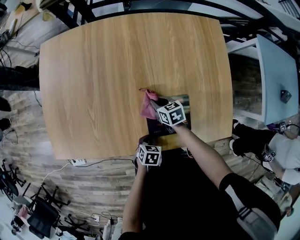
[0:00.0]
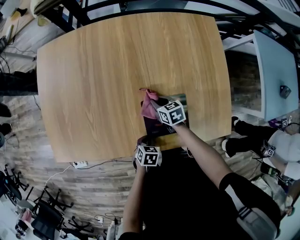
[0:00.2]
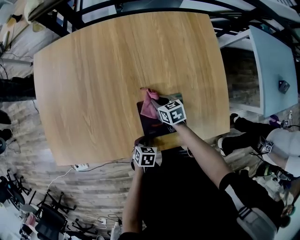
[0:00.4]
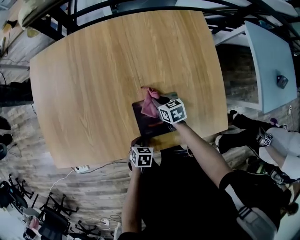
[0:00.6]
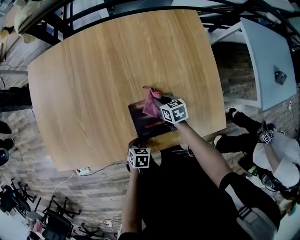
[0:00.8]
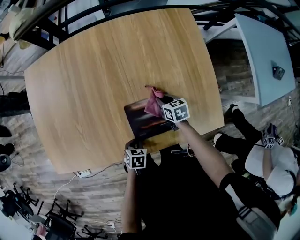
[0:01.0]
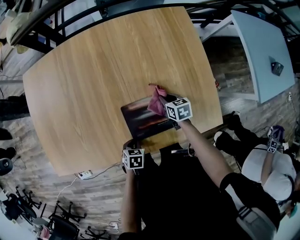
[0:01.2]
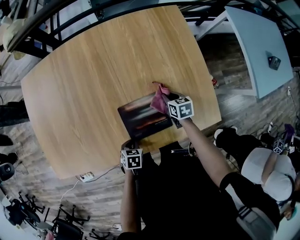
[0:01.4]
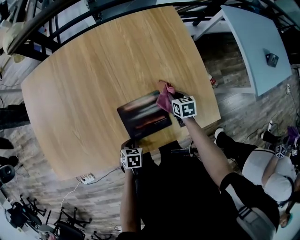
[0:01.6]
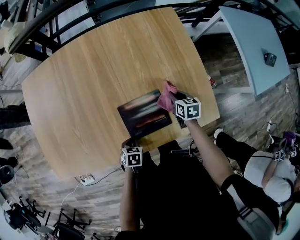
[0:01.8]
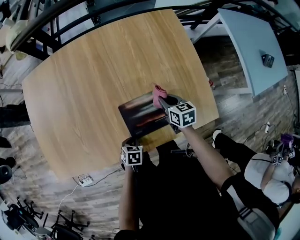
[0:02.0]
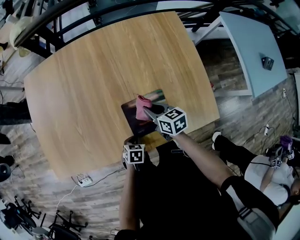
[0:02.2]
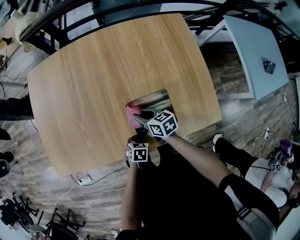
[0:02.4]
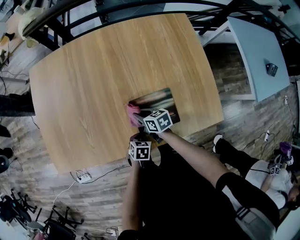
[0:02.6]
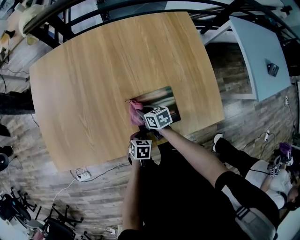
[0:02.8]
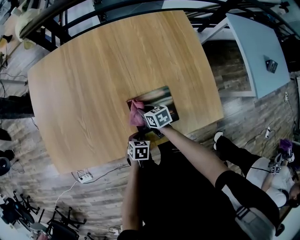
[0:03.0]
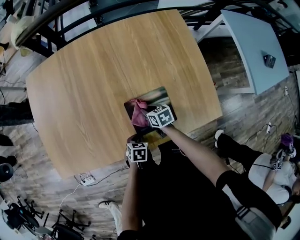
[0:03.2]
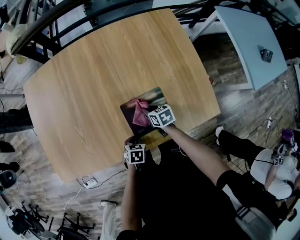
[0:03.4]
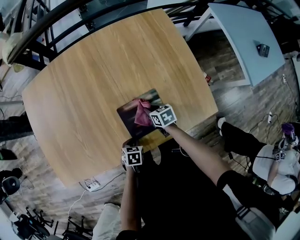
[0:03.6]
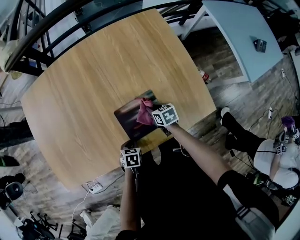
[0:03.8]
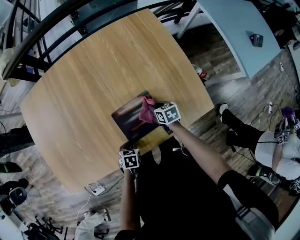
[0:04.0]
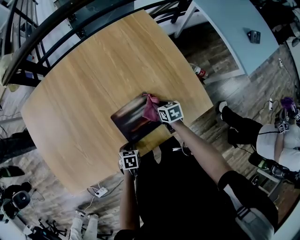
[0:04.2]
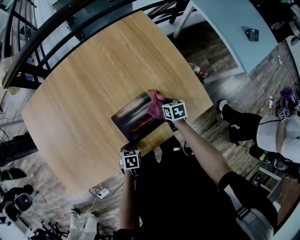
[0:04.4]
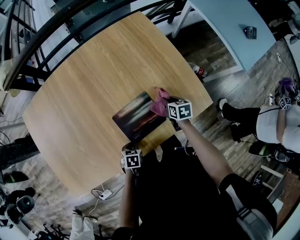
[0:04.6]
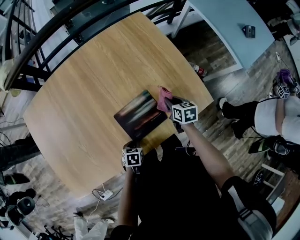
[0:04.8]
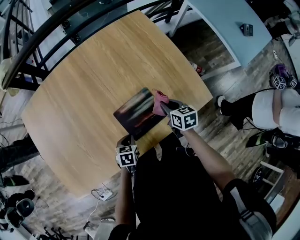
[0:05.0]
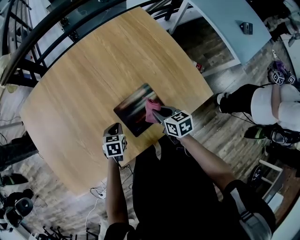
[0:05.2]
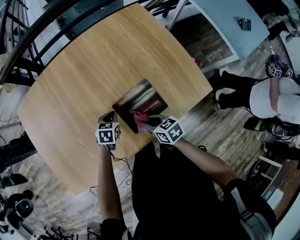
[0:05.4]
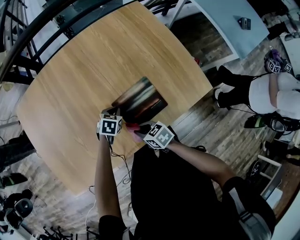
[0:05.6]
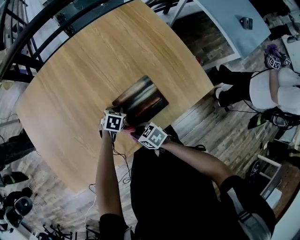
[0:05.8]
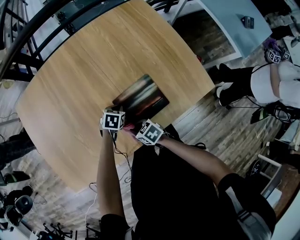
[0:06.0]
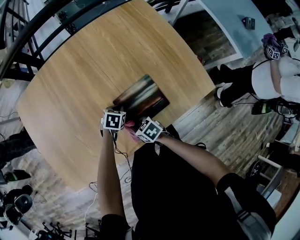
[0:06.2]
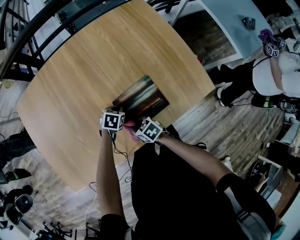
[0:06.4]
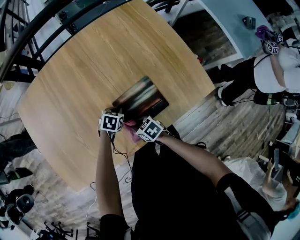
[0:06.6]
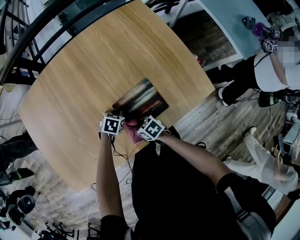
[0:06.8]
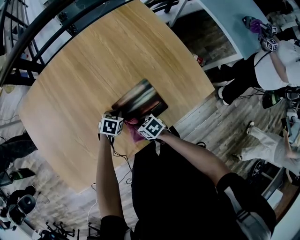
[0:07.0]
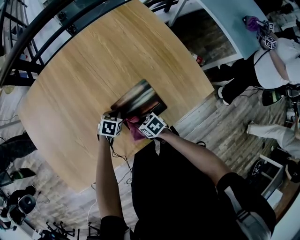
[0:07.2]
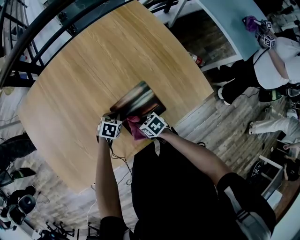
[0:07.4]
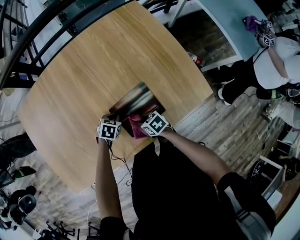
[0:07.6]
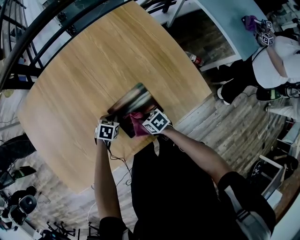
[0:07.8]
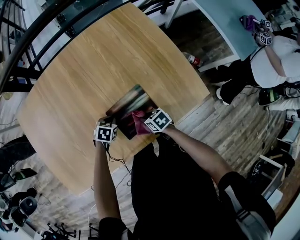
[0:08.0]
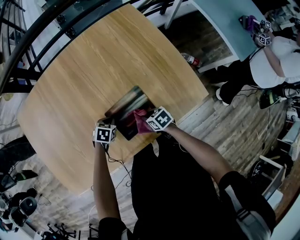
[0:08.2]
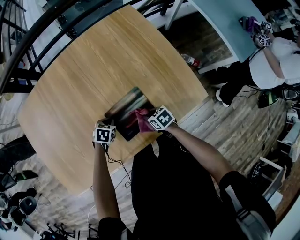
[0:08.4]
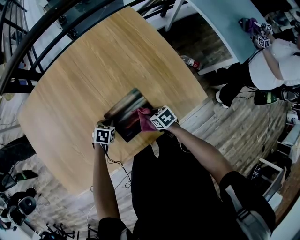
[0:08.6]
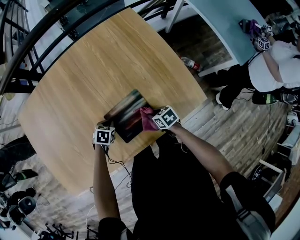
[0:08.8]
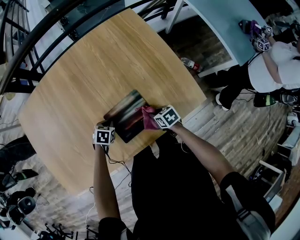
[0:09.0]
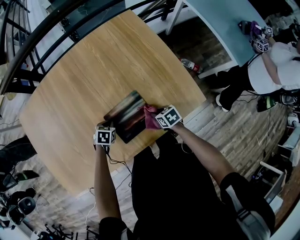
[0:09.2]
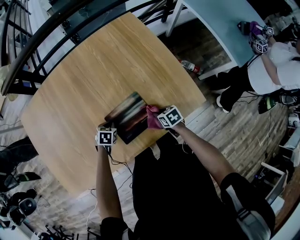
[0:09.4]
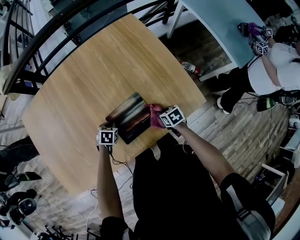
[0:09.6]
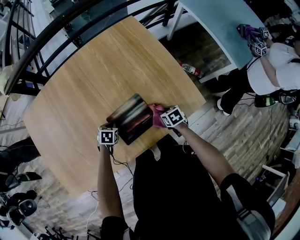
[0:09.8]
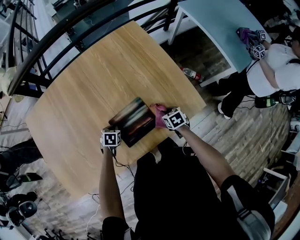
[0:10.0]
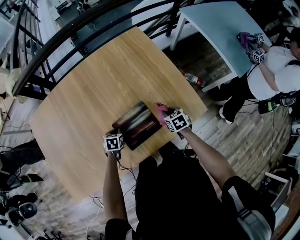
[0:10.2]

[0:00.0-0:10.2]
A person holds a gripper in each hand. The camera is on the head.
0:00.0 to 0:01.4: The right gripper shifts some 20 cm to the right, and changes its angle by roughly 20 degrees.
0:01.4 to 0:03.0: The right gripper travels to the left by roughly 20 cm.
0:03.0 to 0:04.4: The right gripper goes some 20 cm to the right, and rotates approximately 30 degrees.
0:04.4 to 0:05.8: The right gripper shifts by about 30 cm, and rotates approximately 30 degrees, while the left gripper changes place by approximately 15 cm, and turns by some 20 degrees.
0:05.8 to 0:07.2: The right gripper ends up roughly 10 cm from where it was.
0:07.2 to 0:08.8: The right gripper changes place by about 15 cm.
0:08.8 to 0:10.2: The right gripper goes roughly 10 cm to the right and upward, and changes its angle by roughly 20 degrees.

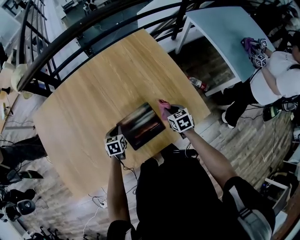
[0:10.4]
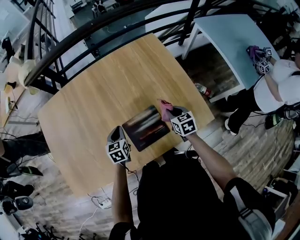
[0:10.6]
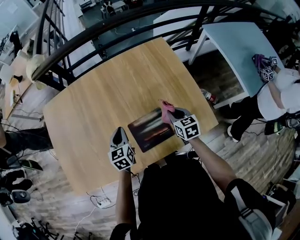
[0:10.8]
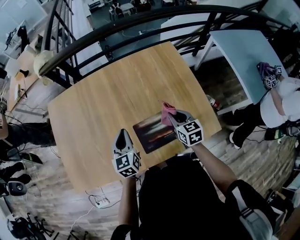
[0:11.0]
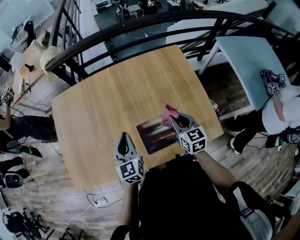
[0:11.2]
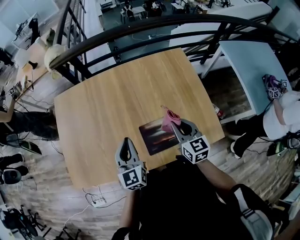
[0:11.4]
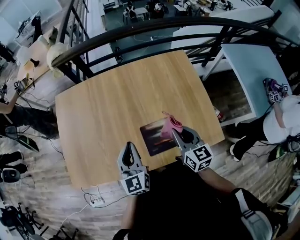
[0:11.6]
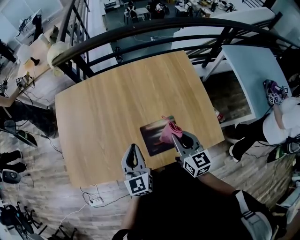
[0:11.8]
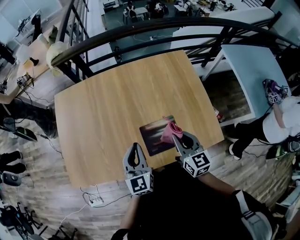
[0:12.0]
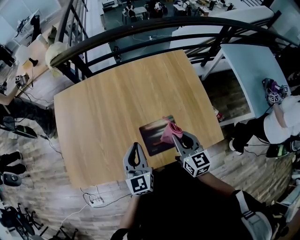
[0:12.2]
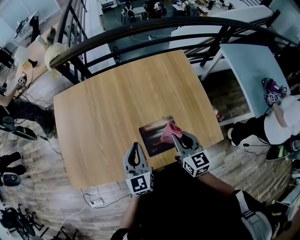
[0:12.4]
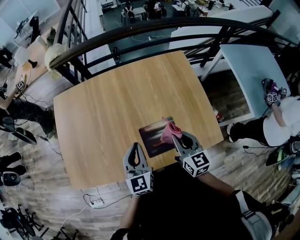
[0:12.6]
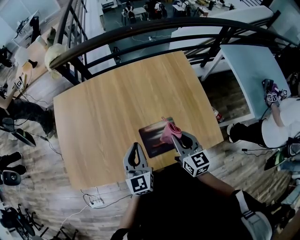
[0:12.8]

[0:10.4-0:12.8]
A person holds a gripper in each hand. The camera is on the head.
0:10.4 to 0:11.6: The right gripper shifts about 25 cm upward and to the left, and points its fingers roughly 30 degrees further upward; the left gripper is displaced upward by about 30 cm, and angles its fingers upward, by approximately 40 degrees.
0:11.6 to 0:12.8: There are only small adjustments of the grippers.

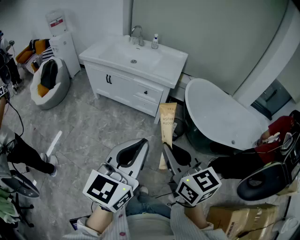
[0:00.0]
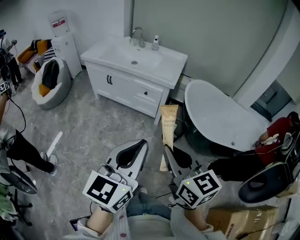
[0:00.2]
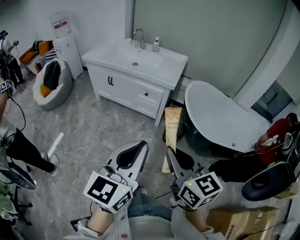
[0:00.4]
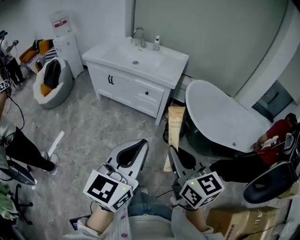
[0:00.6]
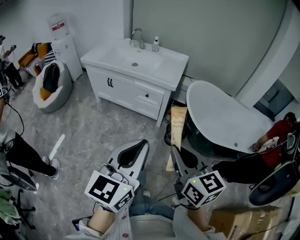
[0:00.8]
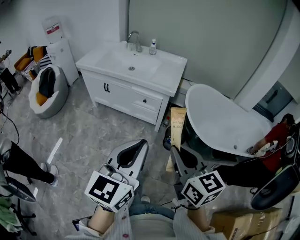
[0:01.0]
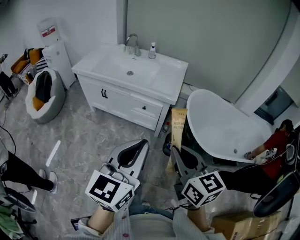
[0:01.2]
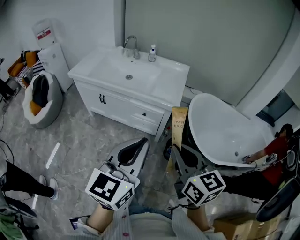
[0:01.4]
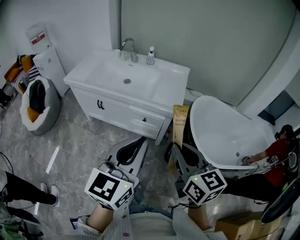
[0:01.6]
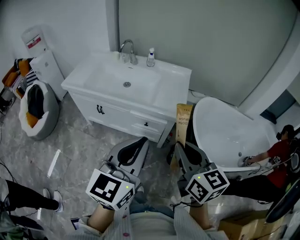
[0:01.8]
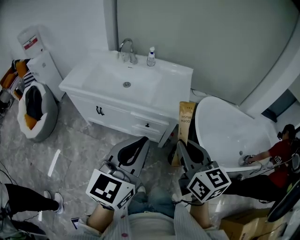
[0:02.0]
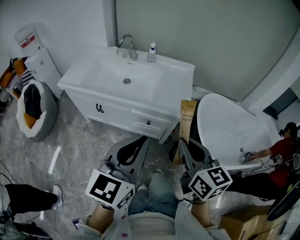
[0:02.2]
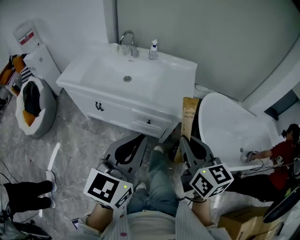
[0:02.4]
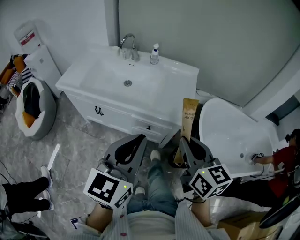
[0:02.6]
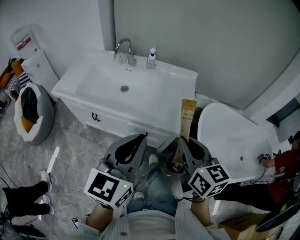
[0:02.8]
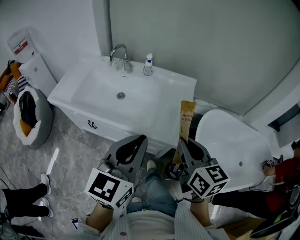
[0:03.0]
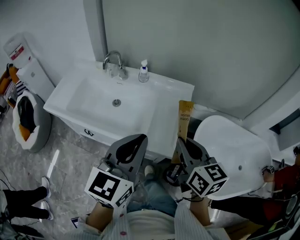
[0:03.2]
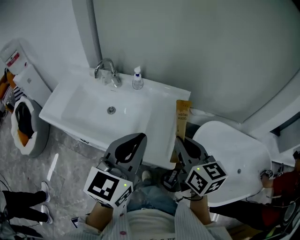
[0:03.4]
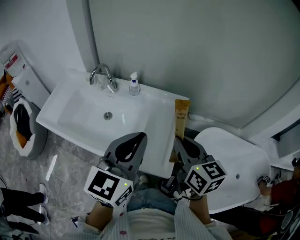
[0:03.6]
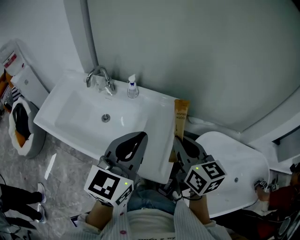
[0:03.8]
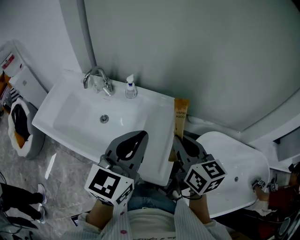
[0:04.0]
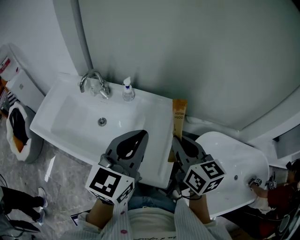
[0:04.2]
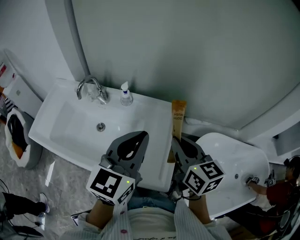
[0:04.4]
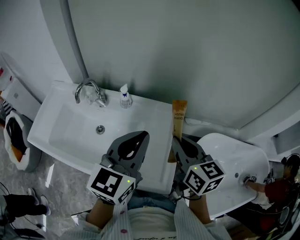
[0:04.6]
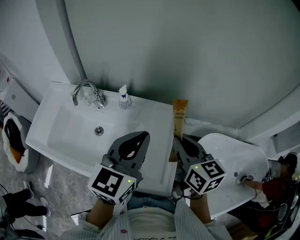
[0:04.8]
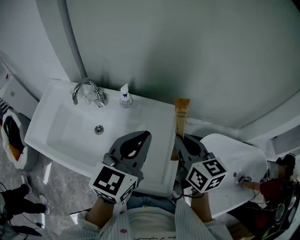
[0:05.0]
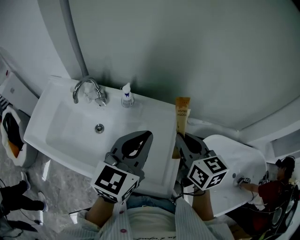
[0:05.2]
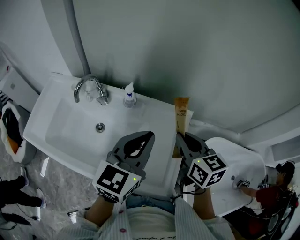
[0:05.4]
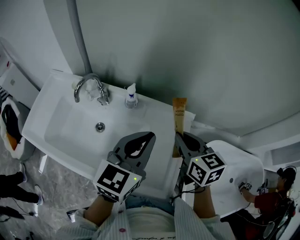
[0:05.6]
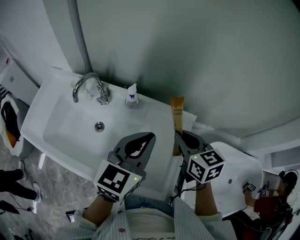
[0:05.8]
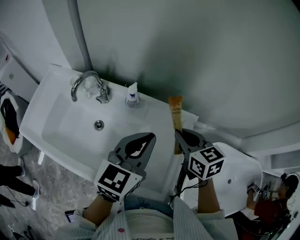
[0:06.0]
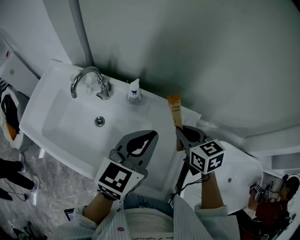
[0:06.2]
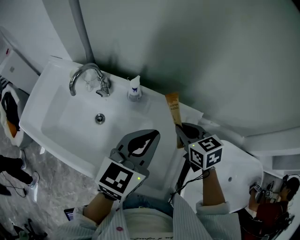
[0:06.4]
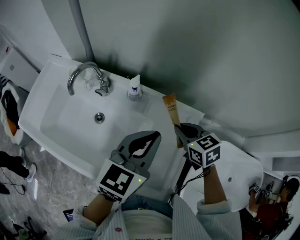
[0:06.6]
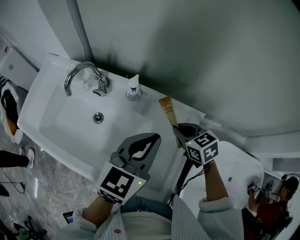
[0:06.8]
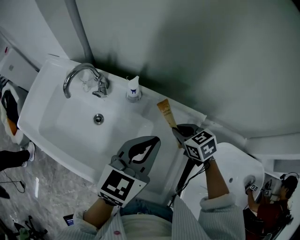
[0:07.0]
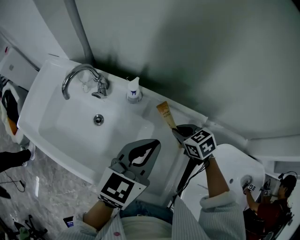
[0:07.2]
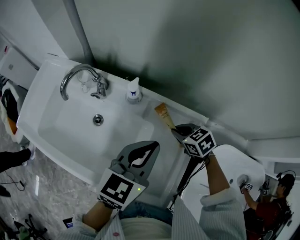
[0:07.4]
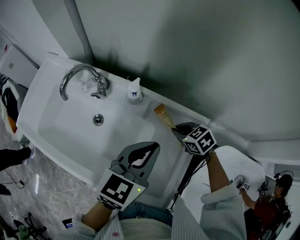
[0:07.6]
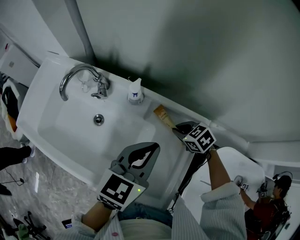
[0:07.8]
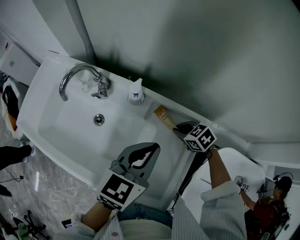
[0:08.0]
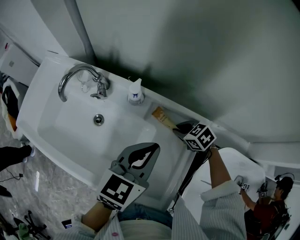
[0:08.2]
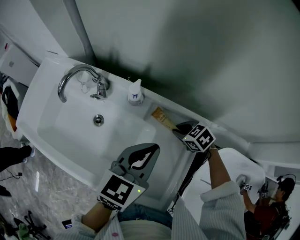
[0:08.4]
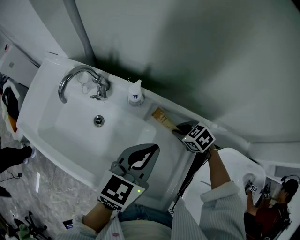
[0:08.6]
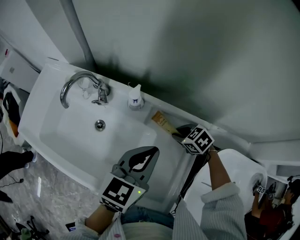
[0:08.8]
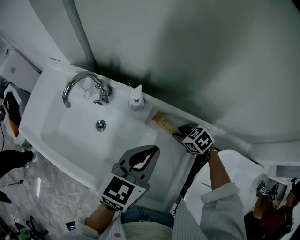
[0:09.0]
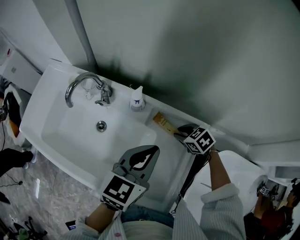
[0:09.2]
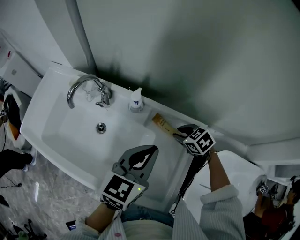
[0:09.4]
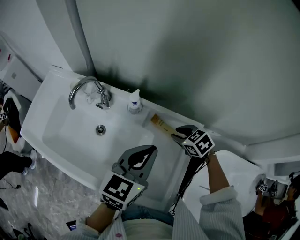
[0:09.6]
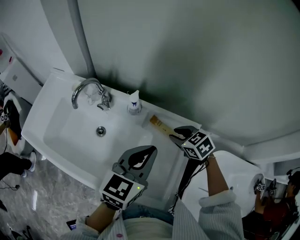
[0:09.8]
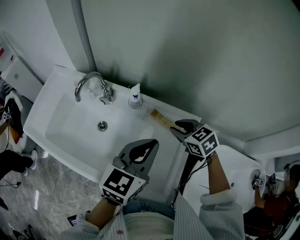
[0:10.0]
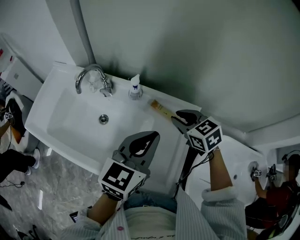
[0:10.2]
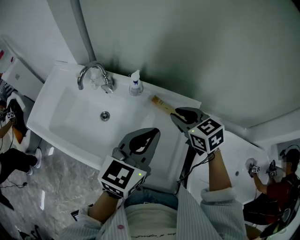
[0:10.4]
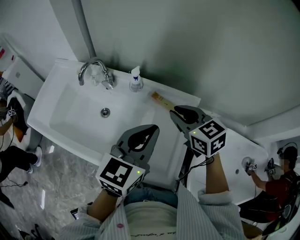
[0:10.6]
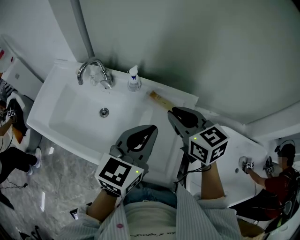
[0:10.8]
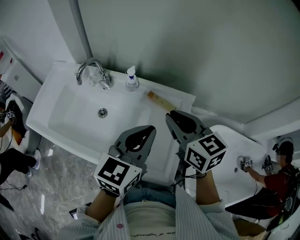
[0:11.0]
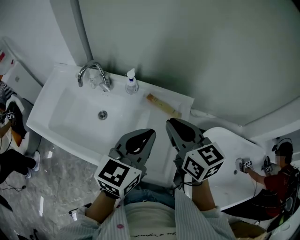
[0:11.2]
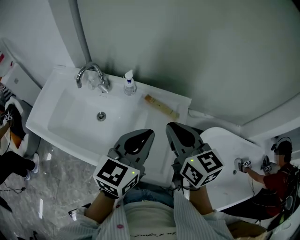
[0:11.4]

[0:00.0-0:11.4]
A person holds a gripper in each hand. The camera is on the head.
0:00.0 to 0:01.4: Both grippers travel together forward, roughly 20 cm.
0:01.4 to 0:02.8: Both grippers travel together forward, roughly 25 cm.
0:02.8 to 0:04.2: Both grippers travel together forward, approximately 30 cm.
0:04.2 to 0:05.6: The left gripper is displaced forward and downward by about 10 cm; the right gripper moves forward, some 15 cm.
0:05.6 to 0:07.2: The right gripper heads downward and forward, covering roughly 20 cm, and rotates some 40 degrees; the left gripper shifts about 5 cm downward.
0:07.2 to 0:08.6: The right gripper heads downward, covering some 5 cm.
0:08.6 to 0:10.0: The left gripper shifts some 5 cm upward, while the right gripper is displaced upward by roughly 15 cm, and swivels some 20 degrees.
0:10.0 to 0:11.4: The left gripper goes about 10 cm backward; the right gripper shifts roughly 20 cm upward and backward, and points its fingers about 30 degrees further upward.
